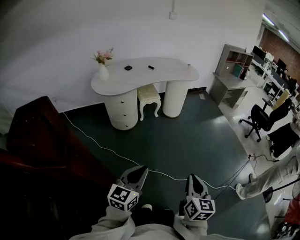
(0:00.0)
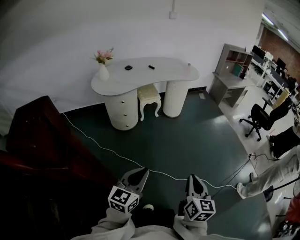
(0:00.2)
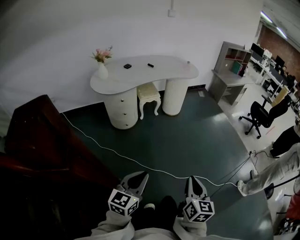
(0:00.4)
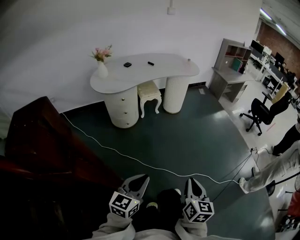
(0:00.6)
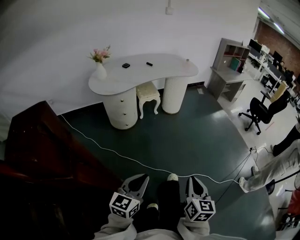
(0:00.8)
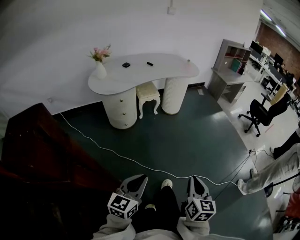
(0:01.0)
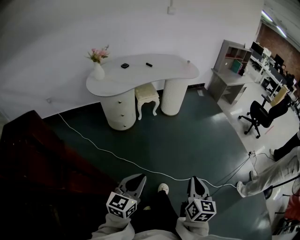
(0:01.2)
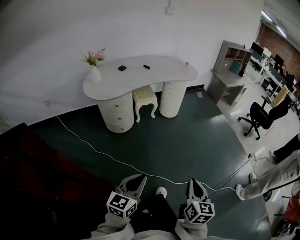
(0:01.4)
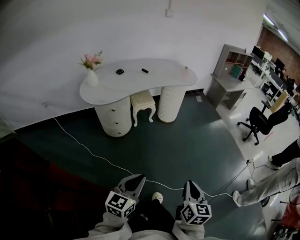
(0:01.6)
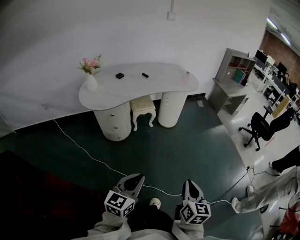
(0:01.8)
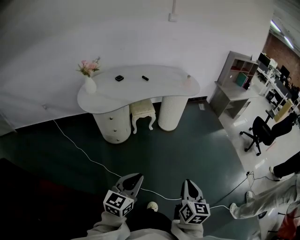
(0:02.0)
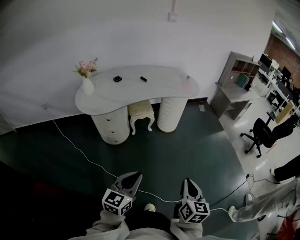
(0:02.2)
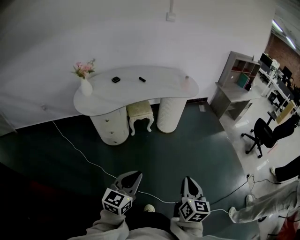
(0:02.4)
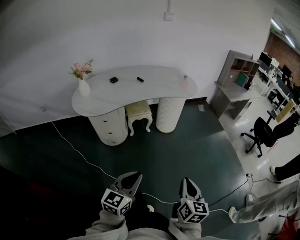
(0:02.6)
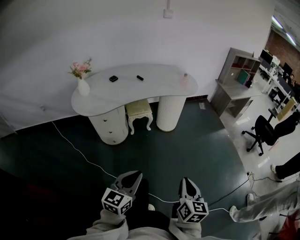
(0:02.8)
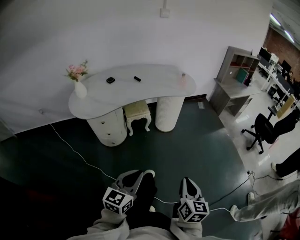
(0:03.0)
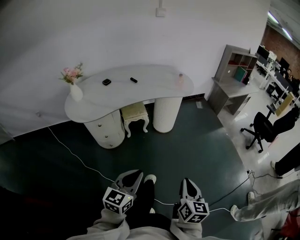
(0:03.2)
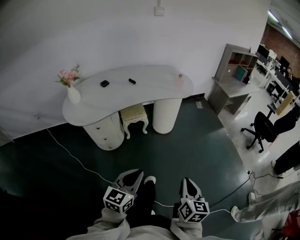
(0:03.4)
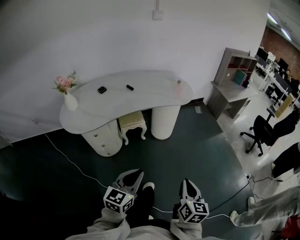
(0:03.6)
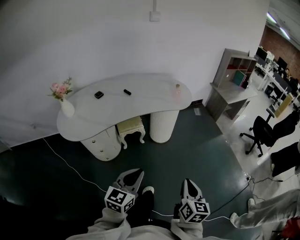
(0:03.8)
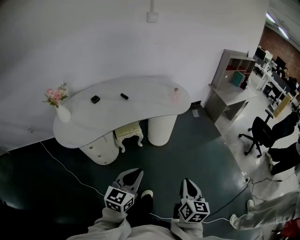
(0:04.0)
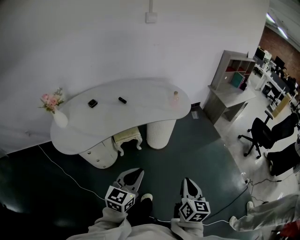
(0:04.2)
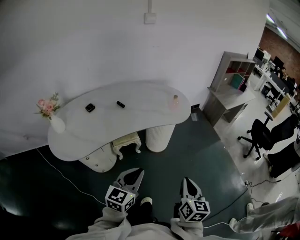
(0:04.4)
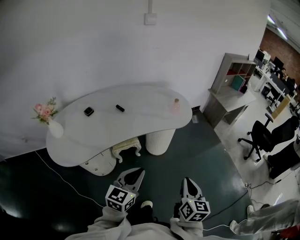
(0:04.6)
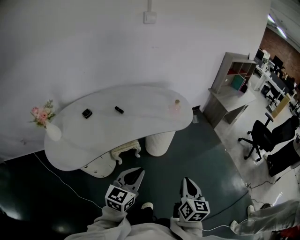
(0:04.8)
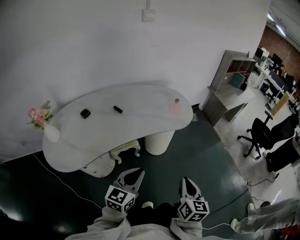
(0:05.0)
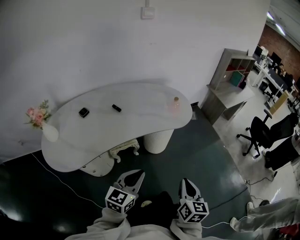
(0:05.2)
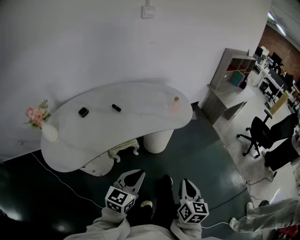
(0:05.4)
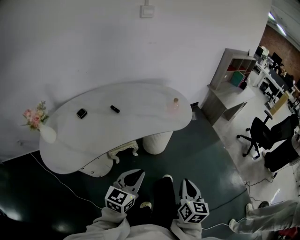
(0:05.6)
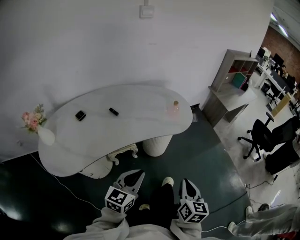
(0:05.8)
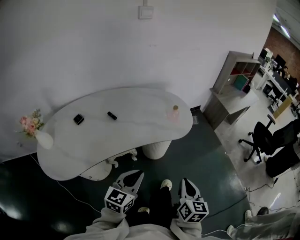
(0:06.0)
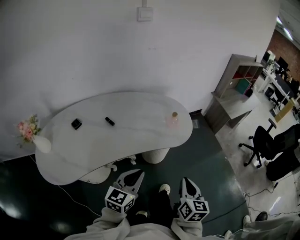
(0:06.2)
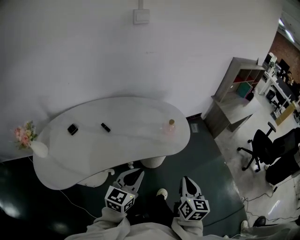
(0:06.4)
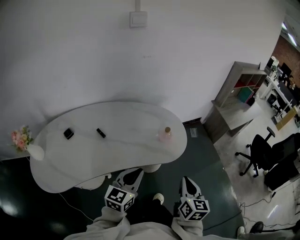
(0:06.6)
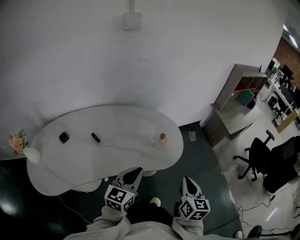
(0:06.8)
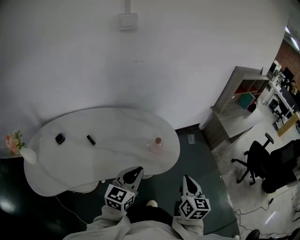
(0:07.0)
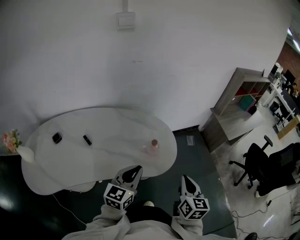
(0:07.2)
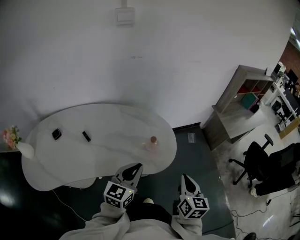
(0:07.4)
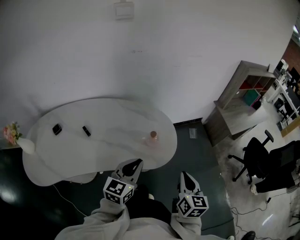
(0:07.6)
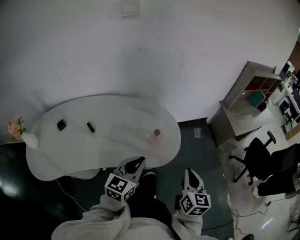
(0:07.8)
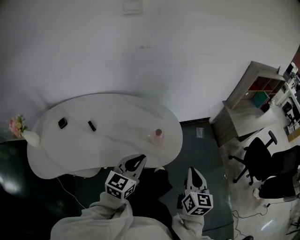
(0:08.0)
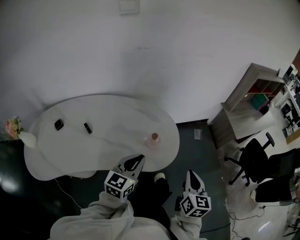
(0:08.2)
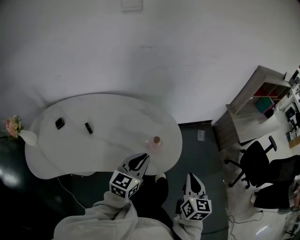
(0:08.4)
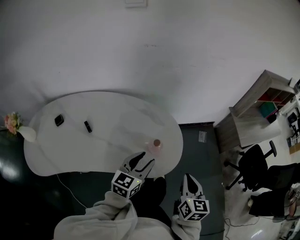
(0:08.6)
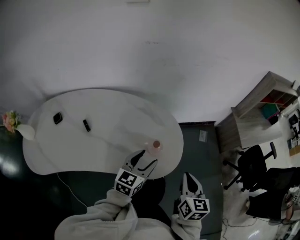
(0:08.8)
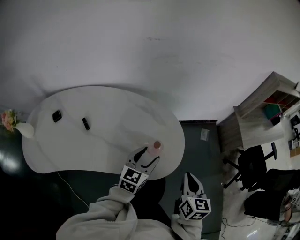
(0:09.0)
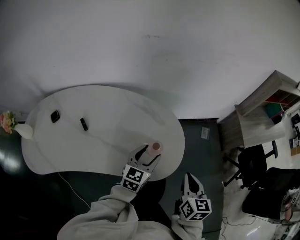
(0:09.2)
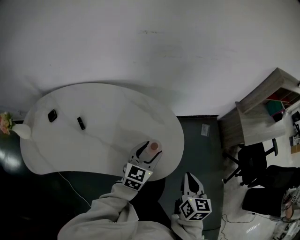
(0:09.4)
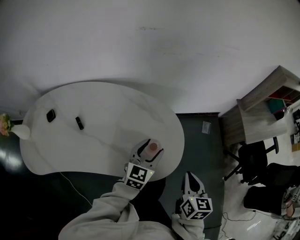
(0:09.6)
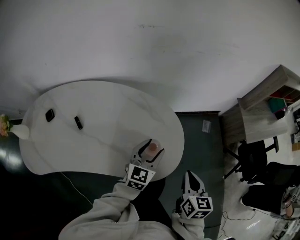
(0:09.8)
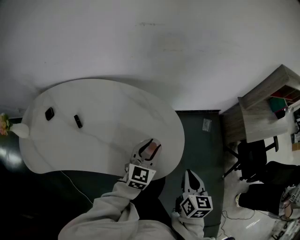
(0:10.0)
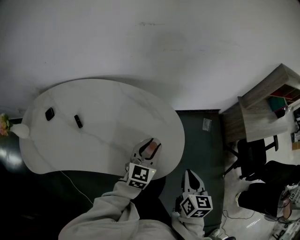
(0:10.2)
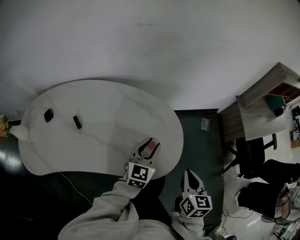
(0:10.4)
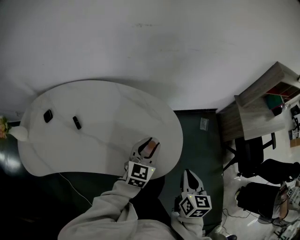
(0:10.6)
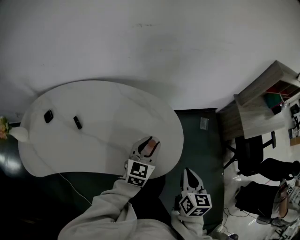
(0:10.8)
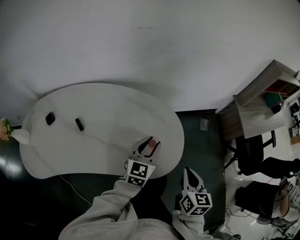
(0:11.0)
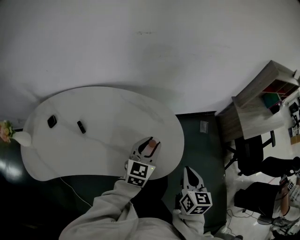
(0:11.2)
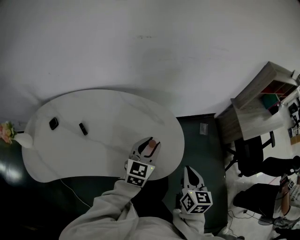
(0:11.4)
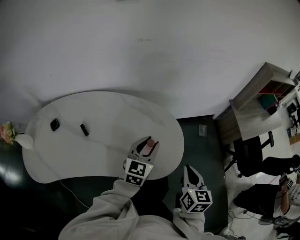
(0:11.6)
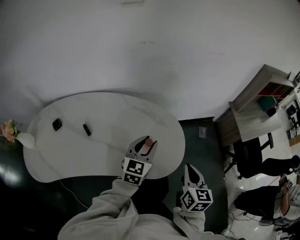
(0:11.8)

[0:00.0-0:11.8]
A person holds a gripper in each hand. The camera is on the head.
0:00.0 to 0:01.4: Both grippers move forward, roughly 5 cm.
0:01.4 to 0:03.0: The two grippers go about 25 cm forward.
0:03.0 to 0:04.4: The two grippers go approximately 25 cm forward.
0:04.4 to 0:06.0: Both grippers travel together forward, some 15 cm.
0:06.0 to 0:07.4: Both grippers move forward, some 25 cm.
0:07.4 to 0:08.8: The left gripper shifts roughly 10 cm forward and downward, and opens its fingers. The right gripper goes approximately 10 cm forward.
0:08.8 to 0:10.4: The right gripper ends up some 5 cm from where it was, while the left gripper goes some 10 cm forward, and closes.
0:10.4 to 0:11.8: Both grippers move upward, about 5 cm.

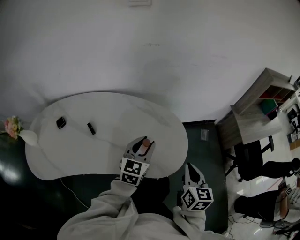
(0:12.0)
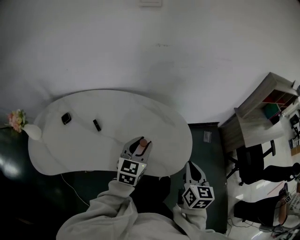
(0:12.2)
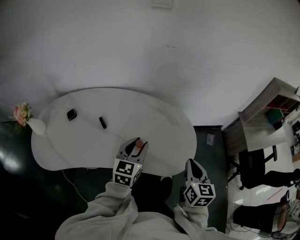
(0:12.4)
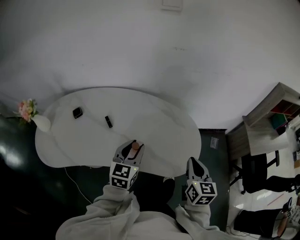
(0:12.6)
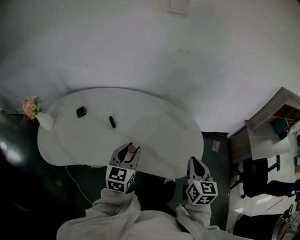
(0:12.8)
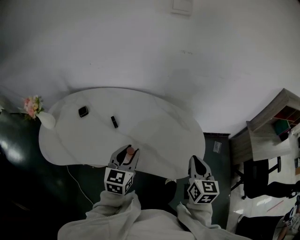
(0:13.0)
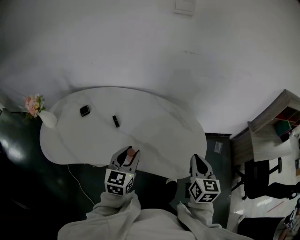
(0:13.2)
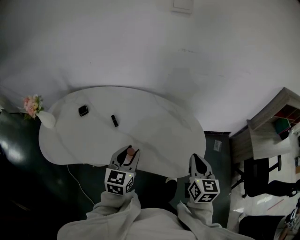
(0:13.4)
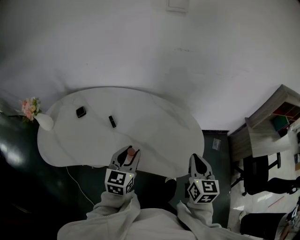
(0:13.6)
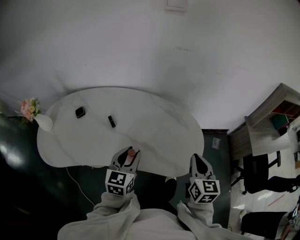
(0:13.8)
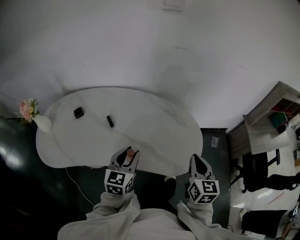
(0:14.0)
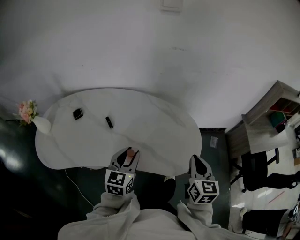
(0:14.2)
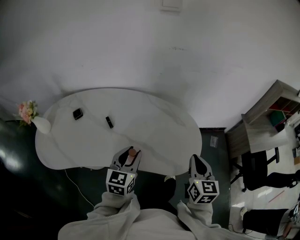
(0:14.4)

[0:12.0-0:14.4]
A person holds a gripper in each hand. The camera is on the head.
0:12.0 to 0:13.2: The left gripper is displaced to the left and backward by some 20 cm, while the right gripper travels to the left by some 5 cm.
0:13.2 to 0:14.4: The grippers make only small movements.

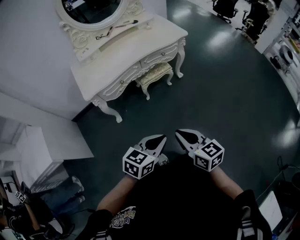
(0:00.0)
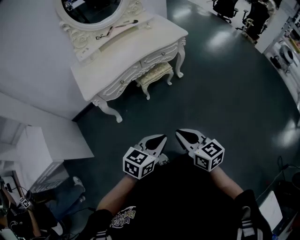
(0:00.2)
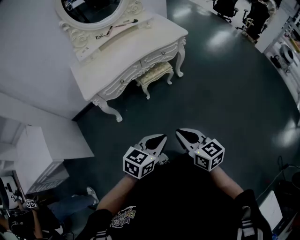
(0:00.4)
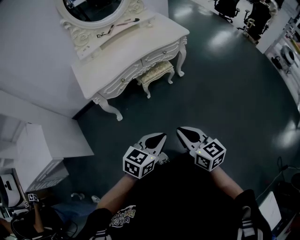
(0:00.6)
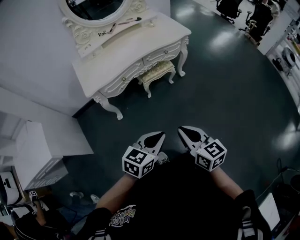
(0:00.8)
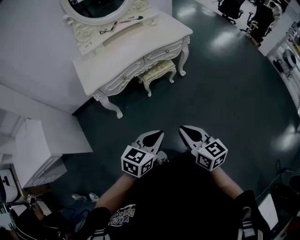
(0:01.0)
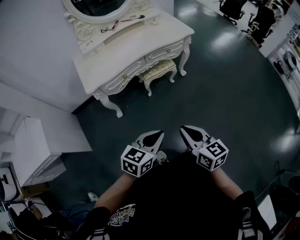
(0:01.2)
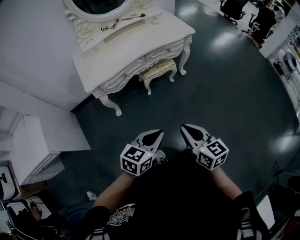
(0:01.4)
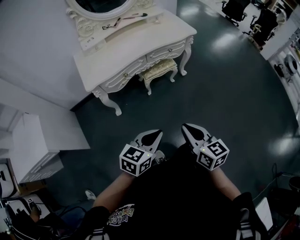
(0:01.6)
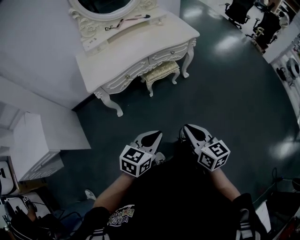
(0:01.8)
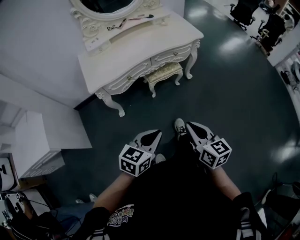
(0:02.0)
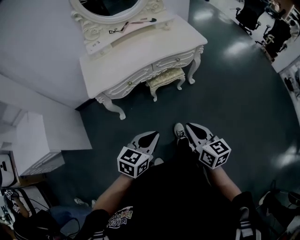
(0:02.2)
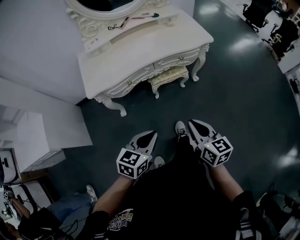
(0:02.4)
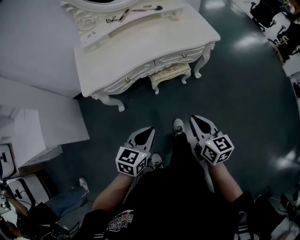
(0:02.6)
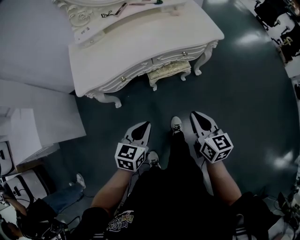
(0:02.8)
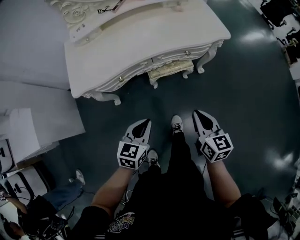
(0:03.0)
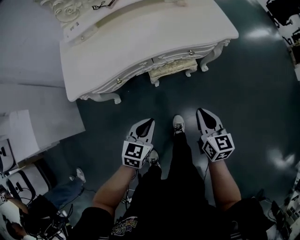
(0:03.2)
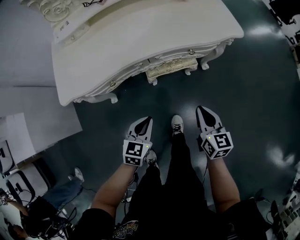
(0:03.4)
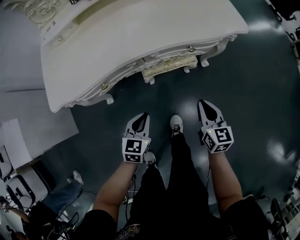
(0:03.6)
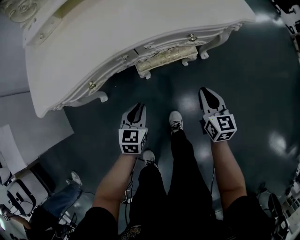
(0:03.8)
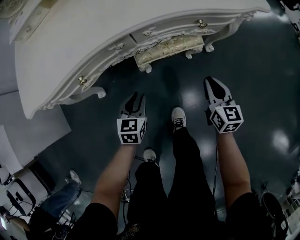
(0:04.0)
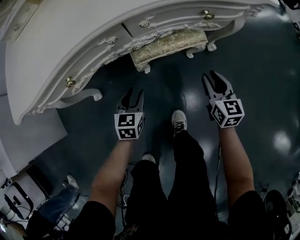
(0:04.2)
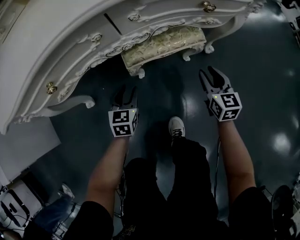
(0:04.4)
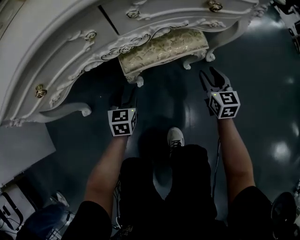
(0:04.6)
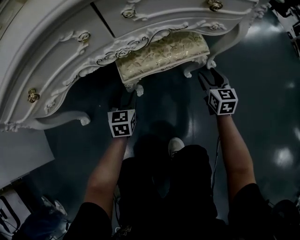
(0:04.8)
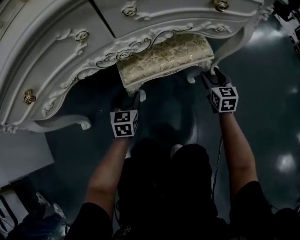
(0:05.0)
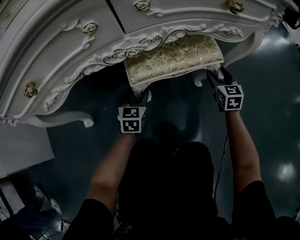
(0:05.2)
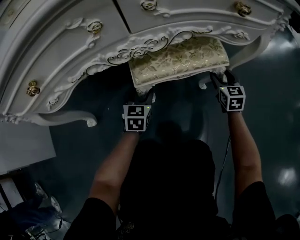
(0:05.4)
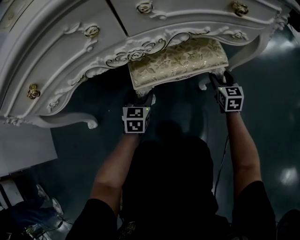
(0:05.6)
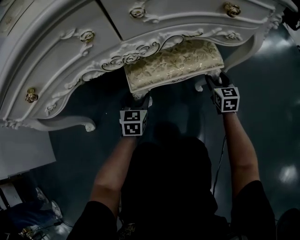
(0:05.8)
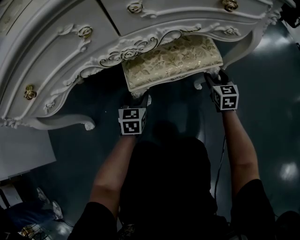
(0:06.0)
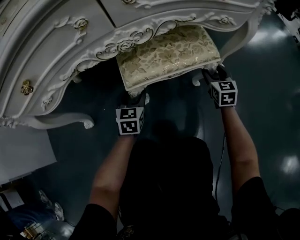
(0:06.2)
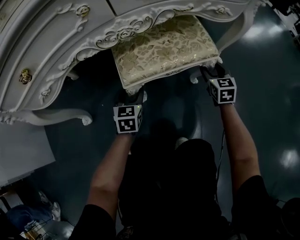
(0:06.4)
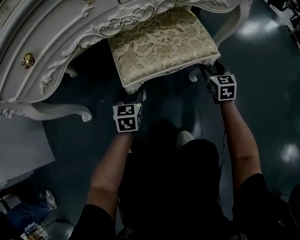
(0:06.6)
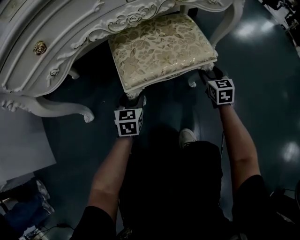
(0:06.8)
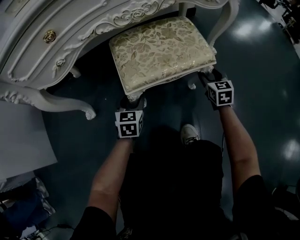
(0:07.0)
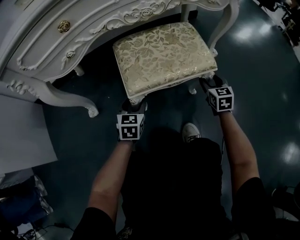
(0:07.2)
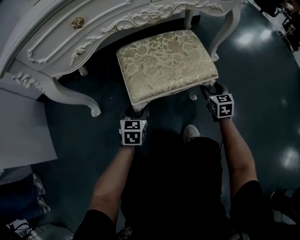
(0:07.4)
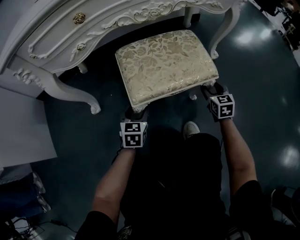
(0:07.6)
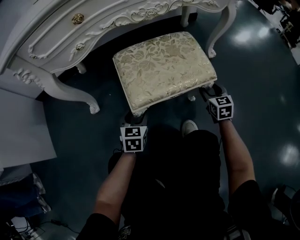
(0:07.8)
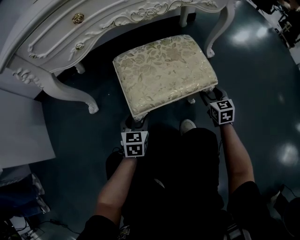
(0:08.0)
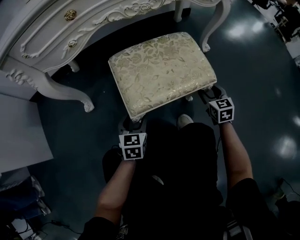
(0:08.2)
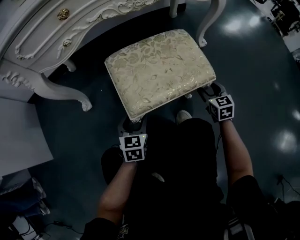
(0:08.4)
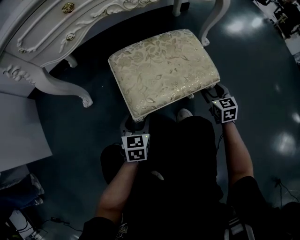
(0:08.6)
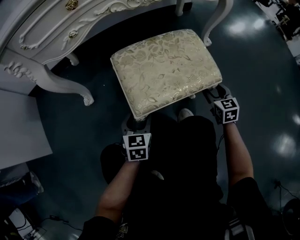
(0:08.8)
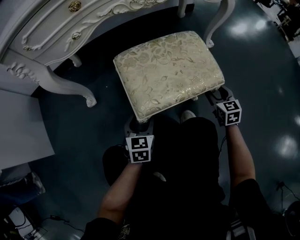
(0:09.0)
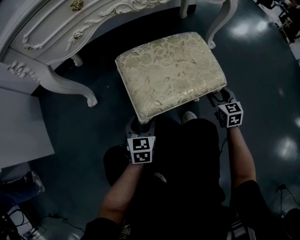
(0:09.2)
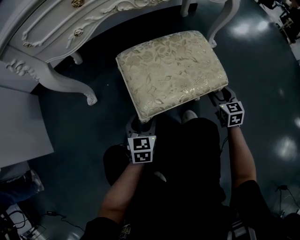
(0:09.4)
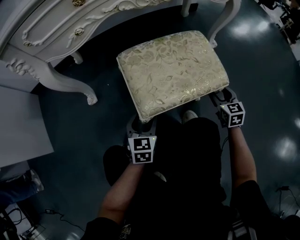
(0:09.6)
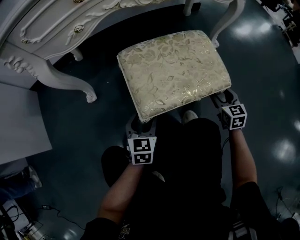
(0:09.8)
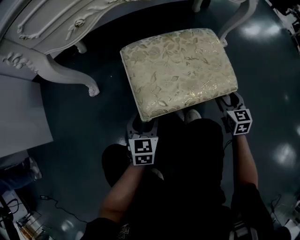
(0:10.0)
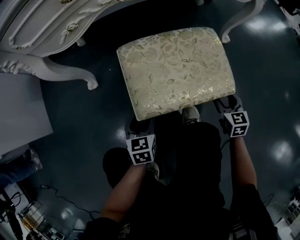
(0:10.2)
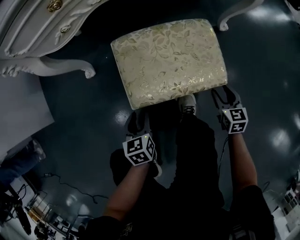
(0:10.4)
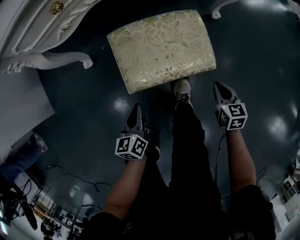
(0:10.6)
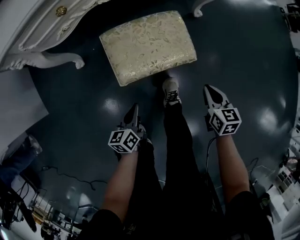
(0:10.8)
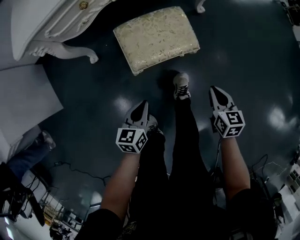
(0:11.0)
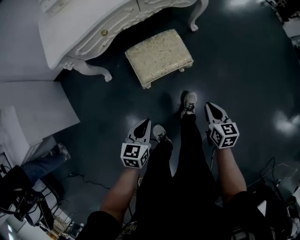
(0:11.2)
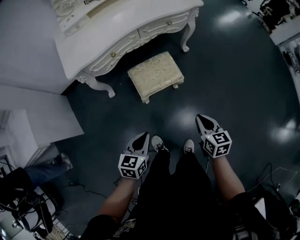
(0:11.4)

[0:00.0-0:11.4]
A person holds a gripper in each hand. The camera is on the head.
0:00.0 to 0:01.4: The grippers stay close to where they were, moving slightly.
0:01.4 to 0:02.8: The right gripper travels forward by roughly 30 cm. Meanwhile the left gripper moves forward and downward, approximately 25 cm, and rotates some 20 degrees.
0:02.8 to 0:04.2: The two grippers go about 50 cm downward and forward. The right gripper opens its fingers, while the left gripper opens.
0:04.2 to 0:05.6: Both grippers travel together downward and forward, some 25 cm. The right gripper opens, while the left gripper opens up.
0:05.6 to 0:08.6: The grippers stay close to where they were, moving slightly.
0:08.6 to 0:10.0: Both grippers stay put.
0:10.0 to 0:11.4: Both grippers move upward and backward, roughly 60 cm. The right gripper swivels approximately 20 degrees, and closes up. The left gripper rotates about 20 degrees, and closes.
